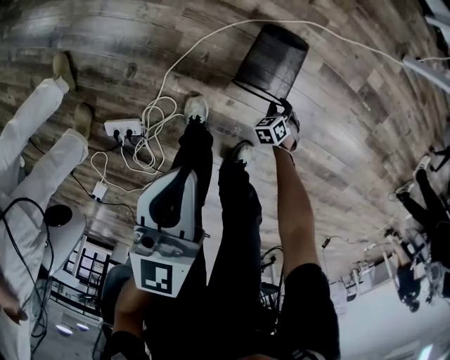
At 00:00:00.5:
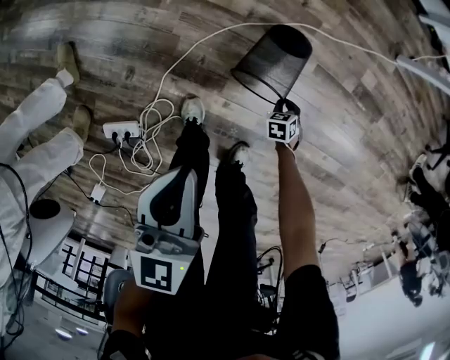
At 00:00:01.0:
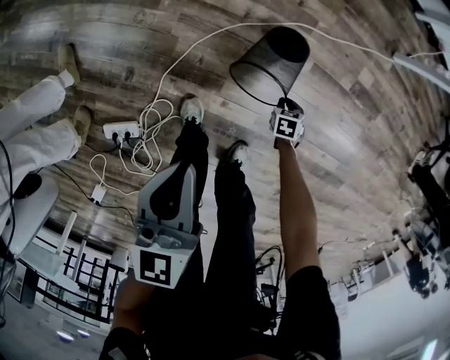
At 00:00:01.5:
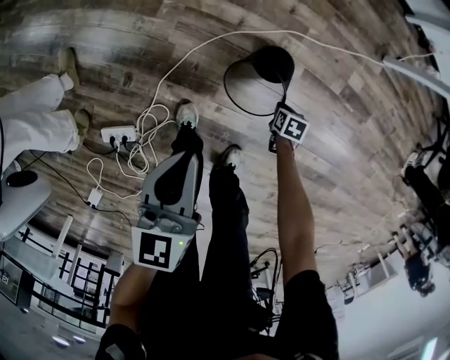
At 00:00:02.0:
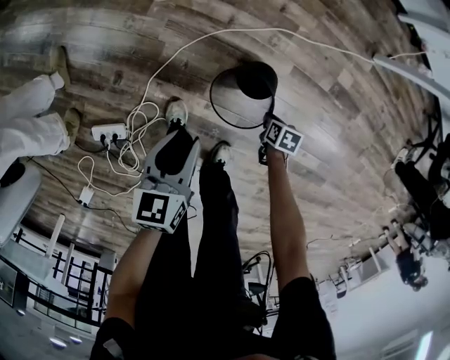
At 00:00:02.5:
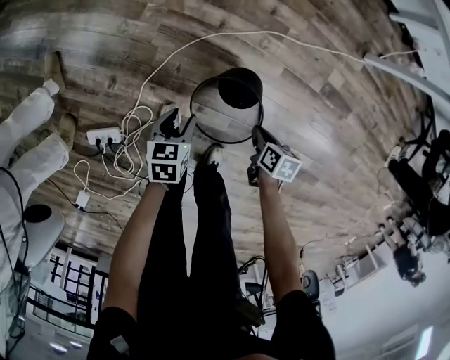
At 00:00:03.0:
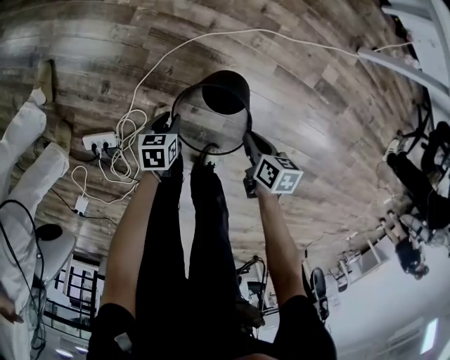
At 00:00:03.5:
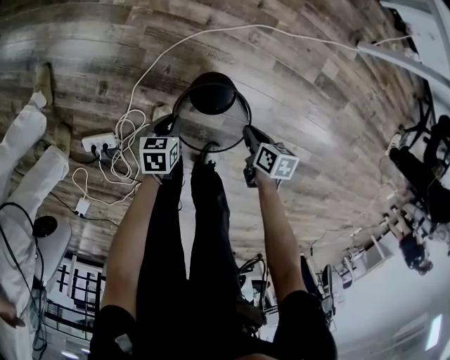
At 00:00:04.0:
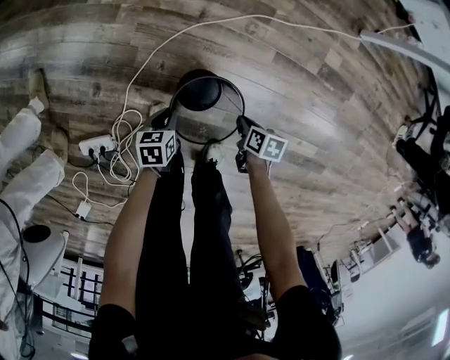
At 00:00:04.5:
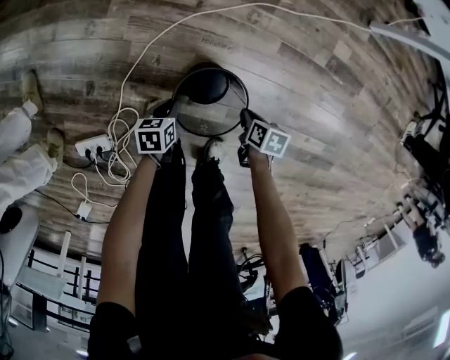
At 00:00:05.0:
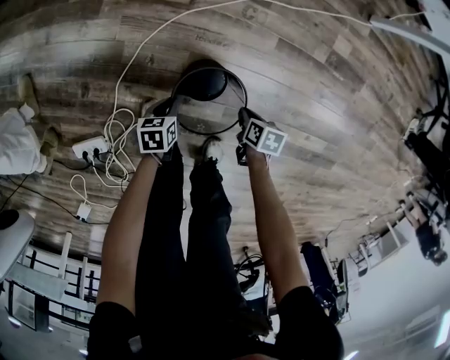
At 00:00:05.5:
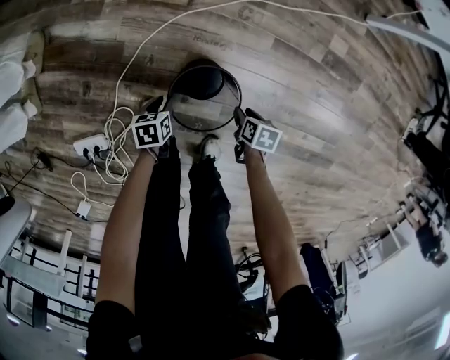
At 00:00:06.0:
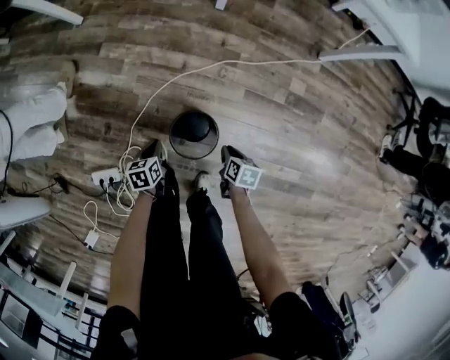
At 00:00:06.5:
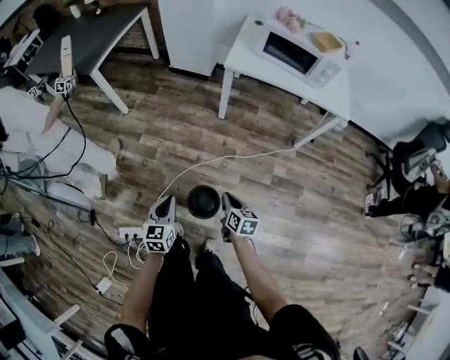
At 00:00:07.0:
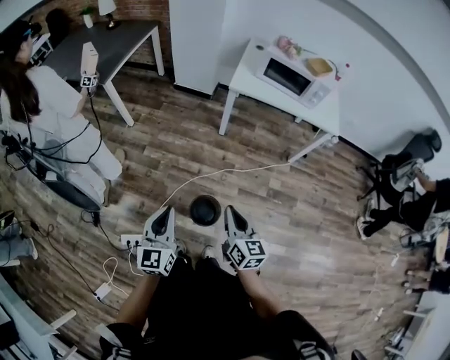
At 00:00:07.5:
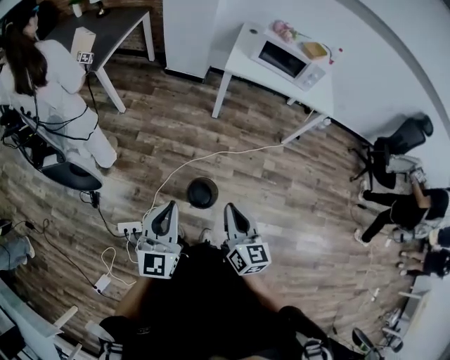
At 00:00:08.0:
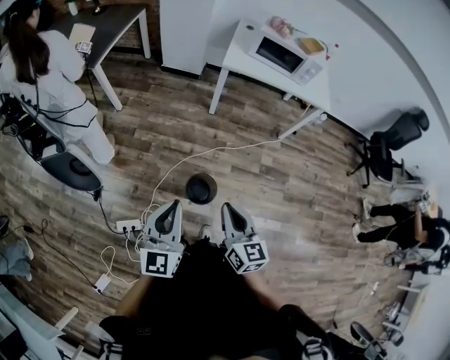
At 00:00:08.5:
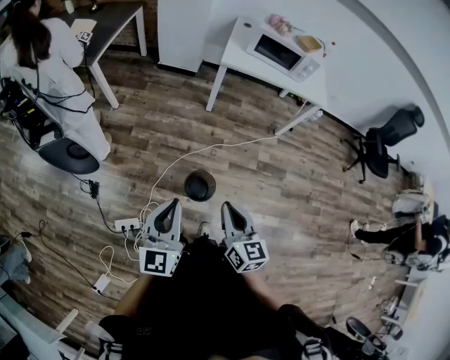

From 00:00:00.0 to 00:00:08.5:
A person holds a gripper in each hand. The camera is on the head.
From 00:00:00.0 to 00:00:02.0: The right gripper shifts about 10 cm upward, and rotates around the line of its fingers by about 50 degrees, clockwise from behind. Meanwhile the left gripper is displaced downward by about 10 cm, and opens.
From 00:00:02.0 to 00:00:04.0: The left gripper goes some 25 cm downward, rotates some 20 degrees, and closes up. The right gripper travels upward and back again, about 15 cm each way.
From 00:00:04.0 to 00:00:06.5: The grippers both shift upward by roughly 50 cm. The left gripper angles its fingers upward, by about 40 degrees. Meanwhile the right gripper tips its fingers upward by approximately 30 degrees, and opens and closes again.
From 00:00:06.5 to 00:00:08.5: Both grippers move upward and backward, some 30 cm. The left gripper changes its angle by approximately 20 degrees. Meanwhile the right gripper changes its angle by roughly 30 degrees.

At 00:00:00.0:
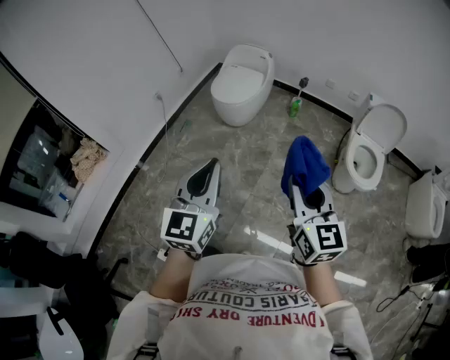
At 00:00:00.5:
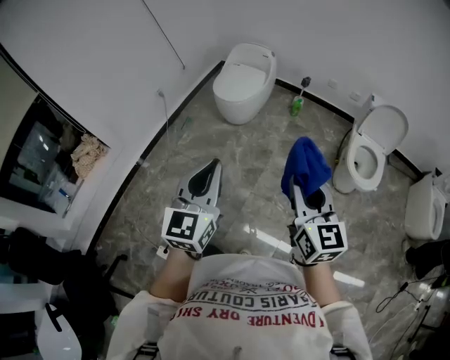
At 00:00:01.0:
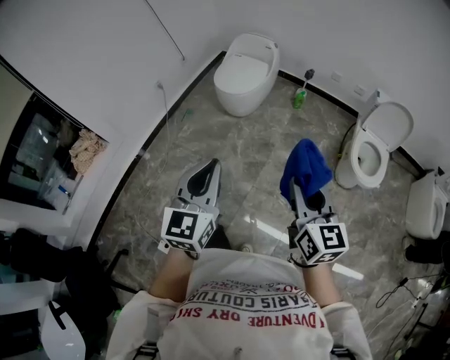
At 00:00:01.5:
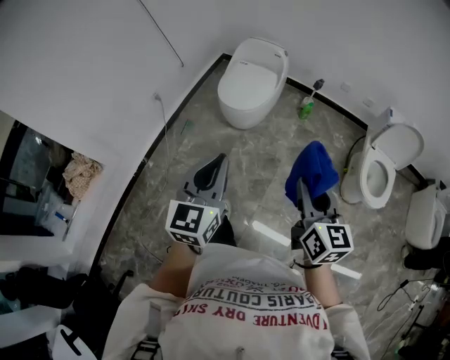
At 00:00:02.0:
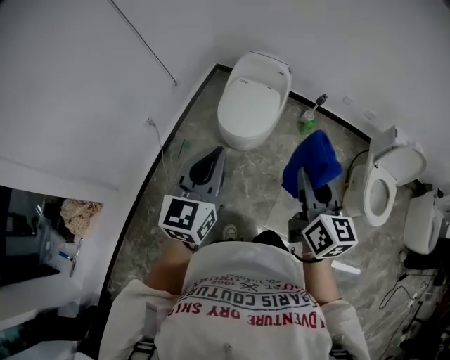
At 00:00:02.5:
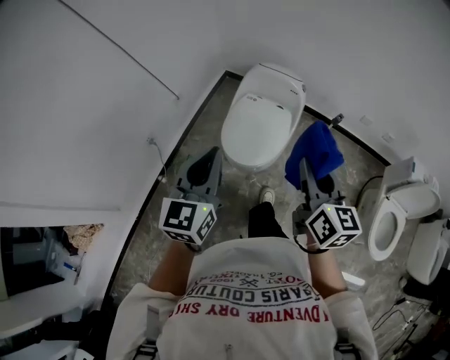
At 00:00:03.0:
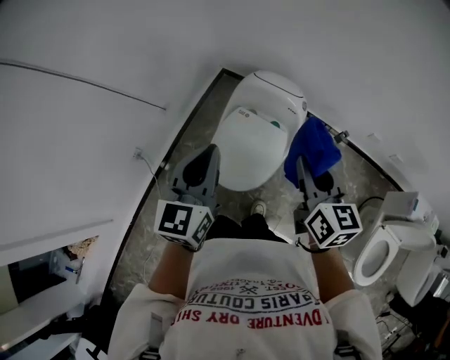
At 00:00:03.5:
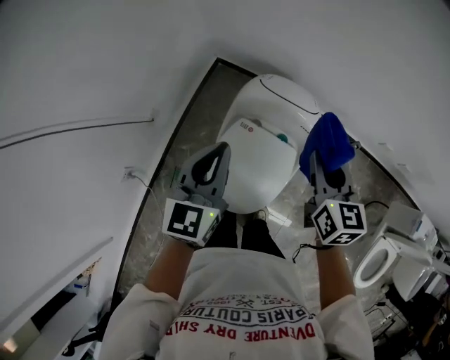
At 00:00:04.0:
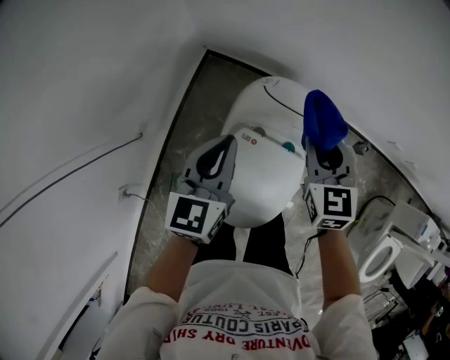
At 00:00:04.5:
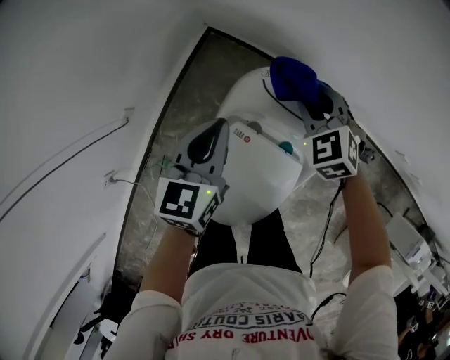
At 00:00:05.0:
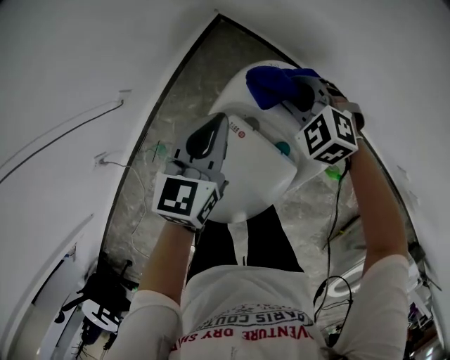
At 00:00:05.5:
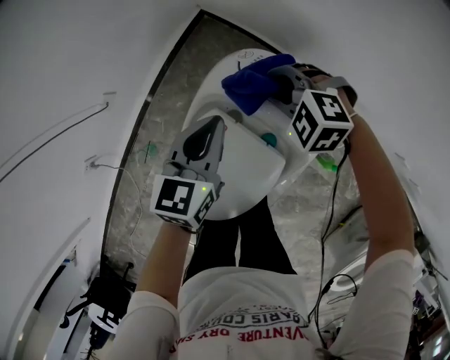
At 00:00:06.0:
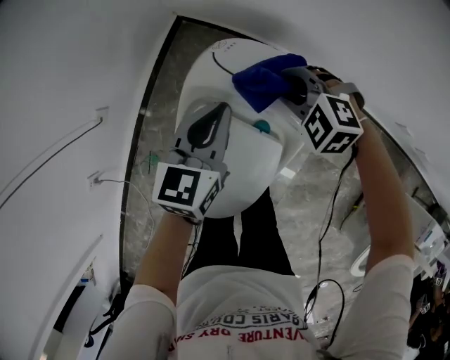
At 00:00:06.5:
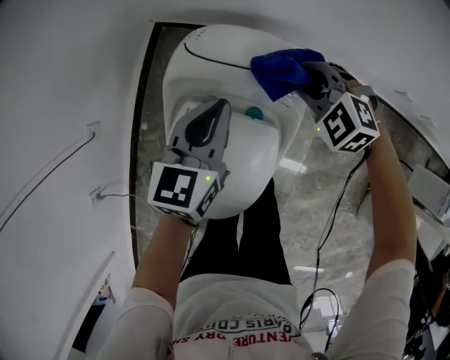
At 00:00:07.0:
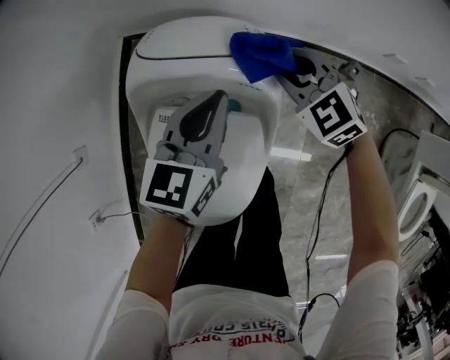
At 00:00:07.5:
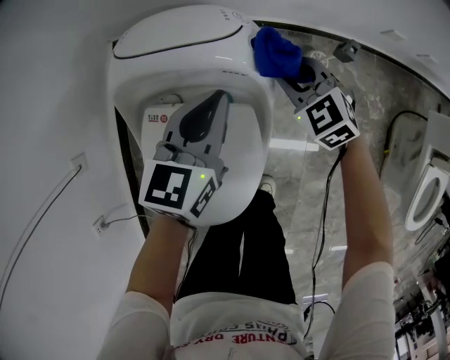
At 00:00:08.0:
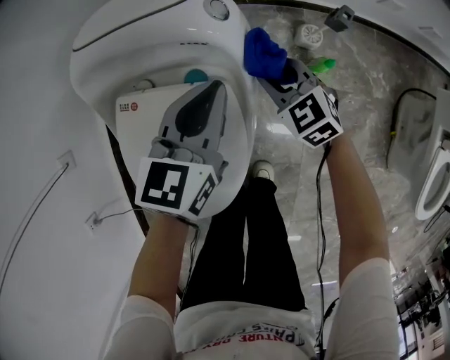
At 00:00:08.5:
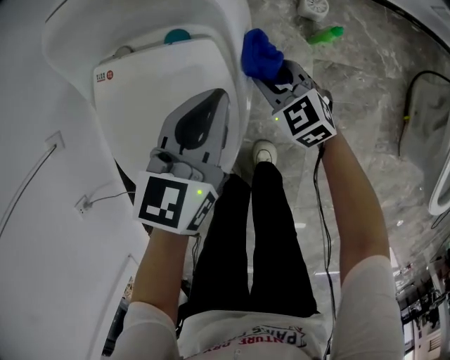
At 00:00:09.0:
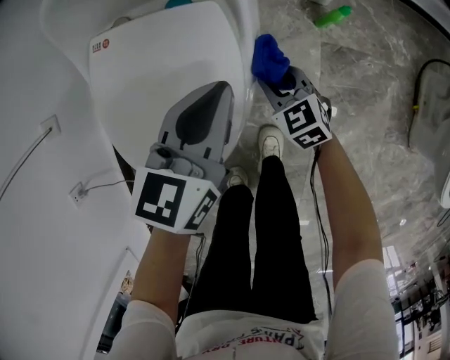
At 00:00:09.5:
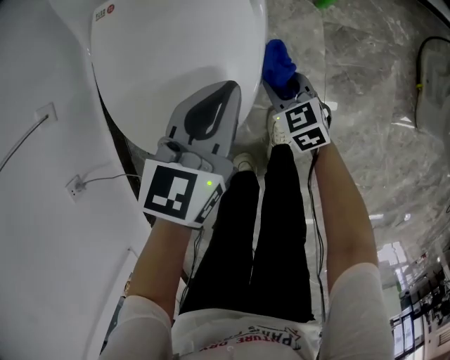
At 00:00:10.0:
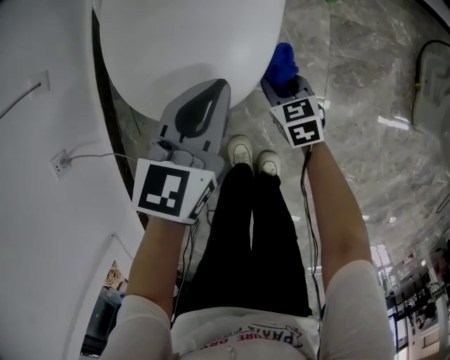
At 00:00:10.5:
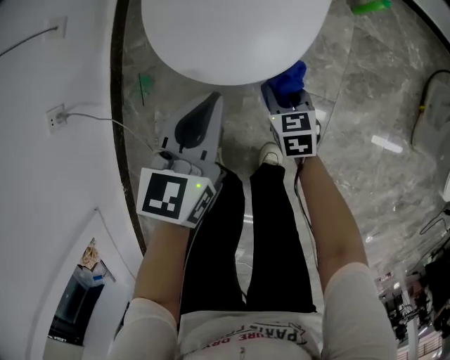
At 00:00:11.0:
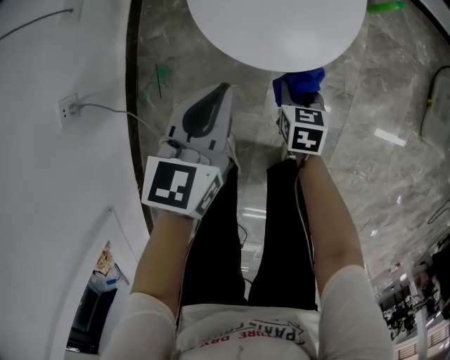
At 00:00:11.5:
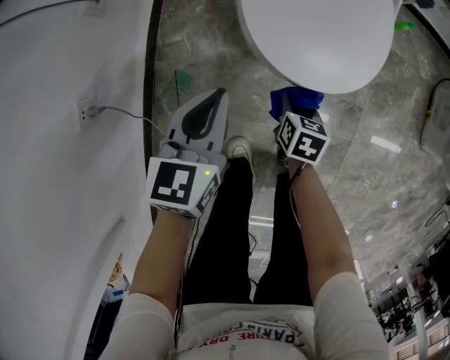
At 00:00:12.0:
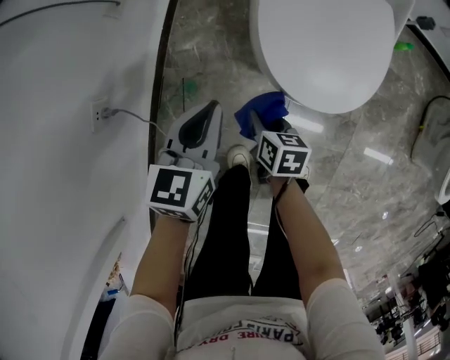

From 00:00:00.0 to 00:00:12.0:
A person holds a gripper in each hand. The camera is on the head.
From 00:00:00.0 to 00:00:02.0: The two grippers travel together, forward and to the left, roughly 50 cm.
From 00:00:02.0 to 00:00:04.0: The two grippers travel together, forward, some 80 cm. The right gripper swivels roughly 30 degrees.
From 00:00:04.0 to 00:00:06.0: The right gripper moves downward, approximately 20 cm, and rotates some 70 degrees. The left gripper changes place by approximately 20 cm.
From 00:00:06.0 to 00:00:08.0: The left gripper shifts by some 25 cm, and turns by about 20 degrees, while the right gripper moves about 30 cm, and rotates around the line of its fingers by roughly 50 degrees, clockwise from behind.
From 00:00:08.0 to 00:00:10.0: The two grippers go roughly 35 cm backward. The right gripper rotates about 30 degrees.
From 00:00:10.0 to 00:00:12.0: Both grippers move to the left, some 35 cm. The right gripper swivels about 30 degrees.

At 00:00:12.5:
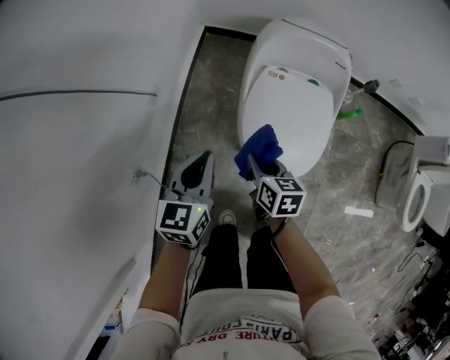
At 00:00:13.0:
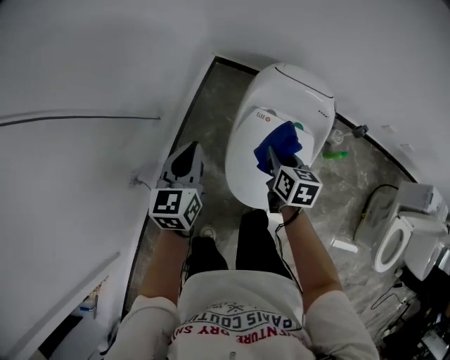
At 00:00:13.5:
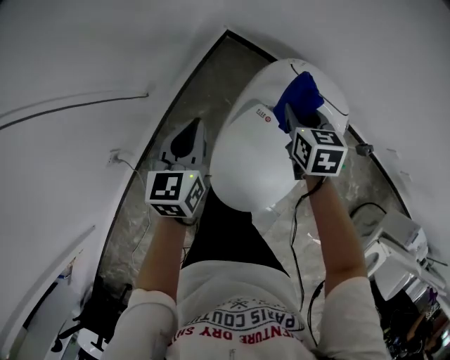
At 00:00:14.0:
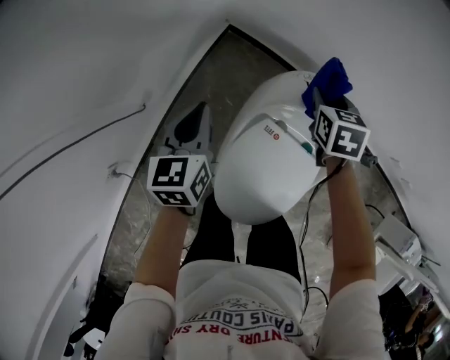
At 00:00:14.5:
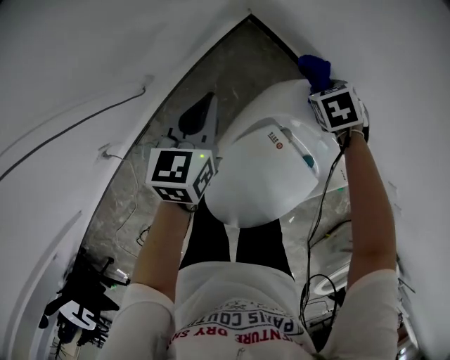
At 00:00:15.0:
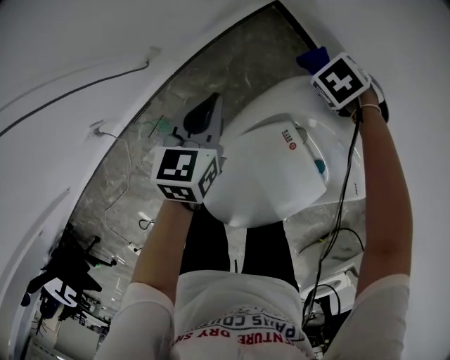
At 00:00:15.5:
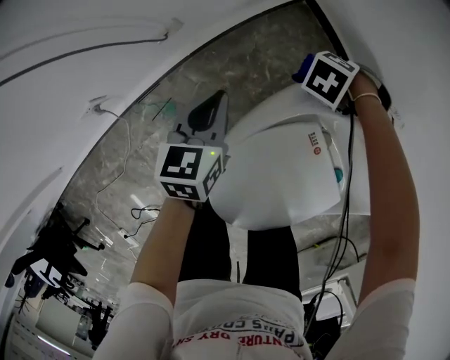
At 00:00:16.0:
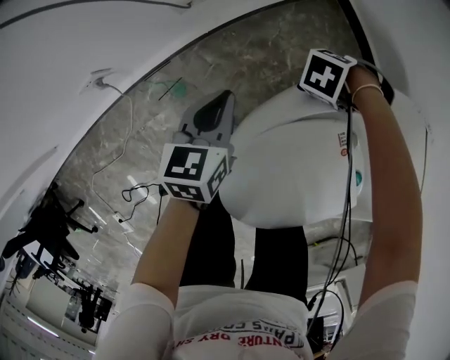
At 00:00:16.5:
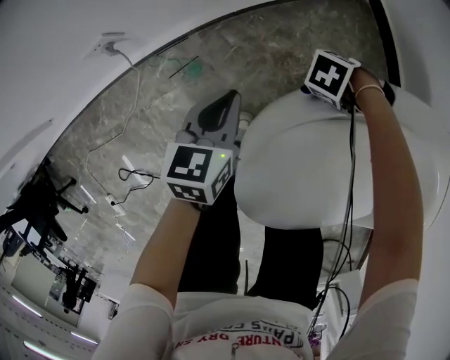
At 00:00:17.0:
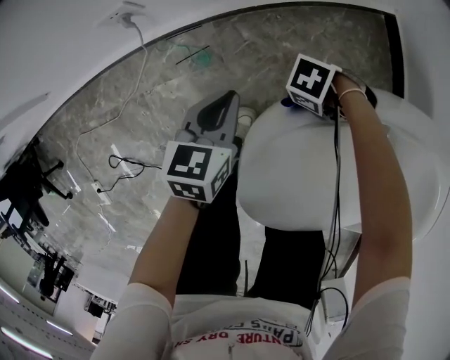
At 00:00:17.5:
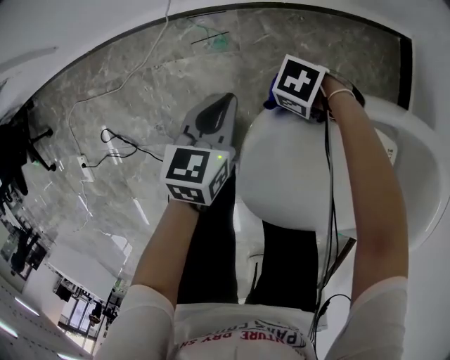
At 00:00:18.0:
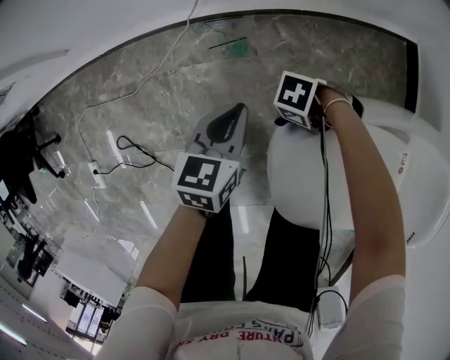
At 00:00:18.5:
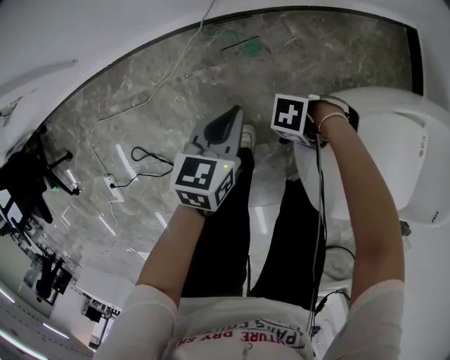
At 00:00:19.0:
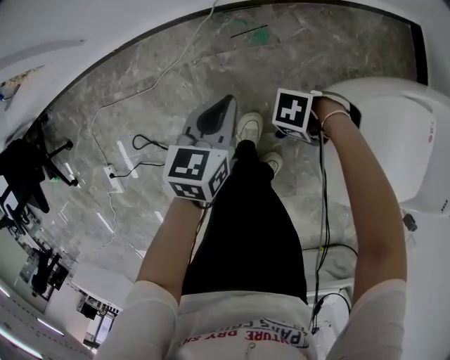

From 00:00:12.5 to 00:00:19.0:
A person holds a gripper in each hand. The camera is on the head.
From 00:00:12.5 to 00:00:14.5: The right gripper reaches some 10 cm upward, then returns, and twists about 60 degrees counterclockwise, seen from behind; the left gripper reaches roughly 10 cm upward, then returns, and swivels about 30 degrees.
From 00:00:14.5 to 00:00:17.0: The left gripper ends up roughly 40 cm from where it was, and changes its angle by some 30 degrees. Meanwhile the right gripper ends up approximately 50 cm from where it was, and changes its angle by some 80 degrees.
From 00:00:17.0 to 00:00:19.0: The right gripper shifts by some 30 cm. Meanwhile the left gripper ends up approximately 25 cm from where it was.
